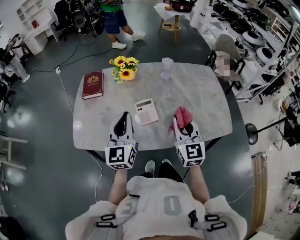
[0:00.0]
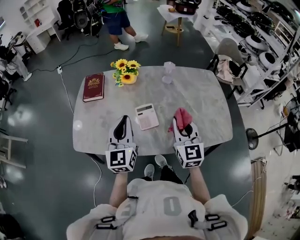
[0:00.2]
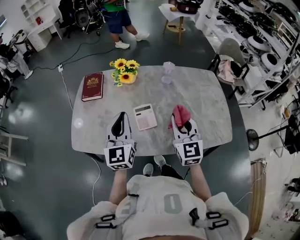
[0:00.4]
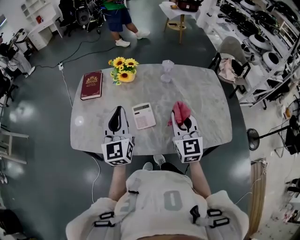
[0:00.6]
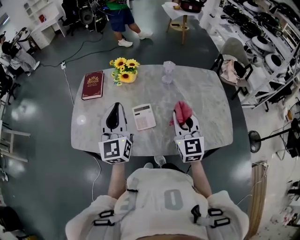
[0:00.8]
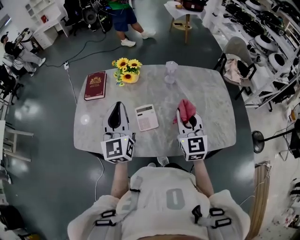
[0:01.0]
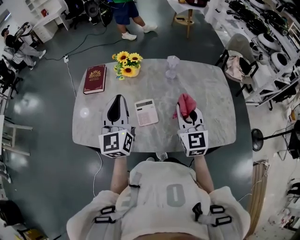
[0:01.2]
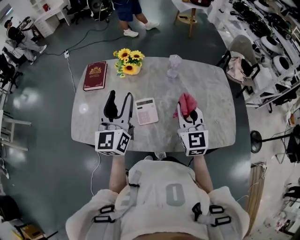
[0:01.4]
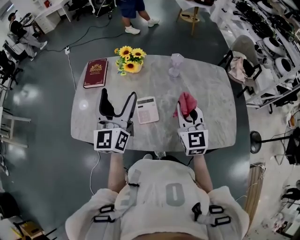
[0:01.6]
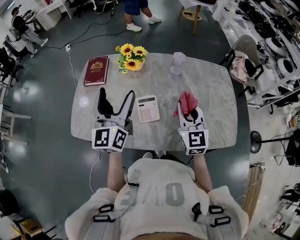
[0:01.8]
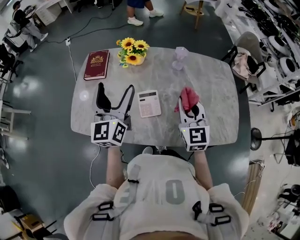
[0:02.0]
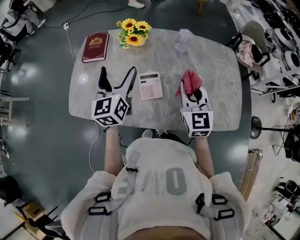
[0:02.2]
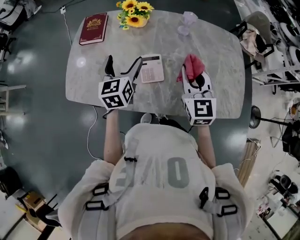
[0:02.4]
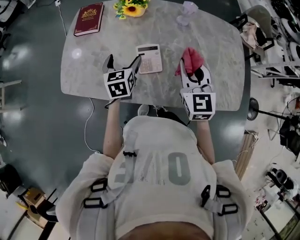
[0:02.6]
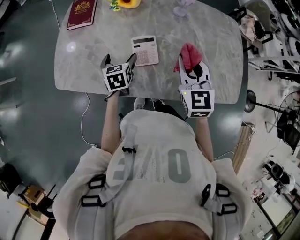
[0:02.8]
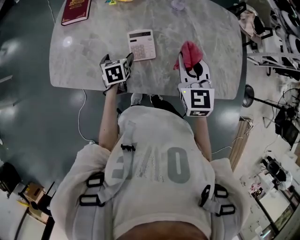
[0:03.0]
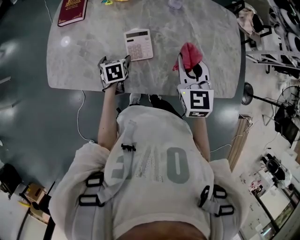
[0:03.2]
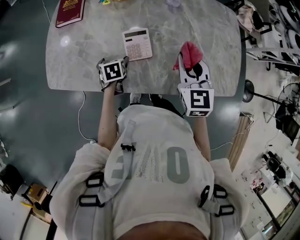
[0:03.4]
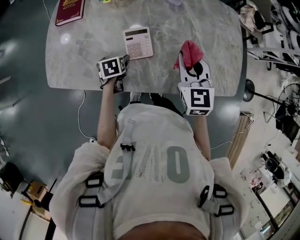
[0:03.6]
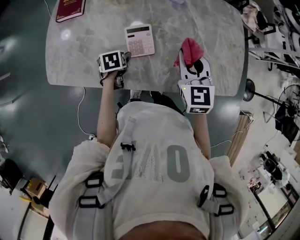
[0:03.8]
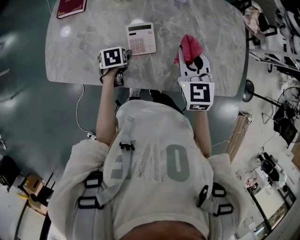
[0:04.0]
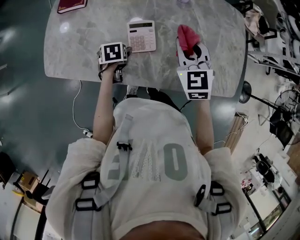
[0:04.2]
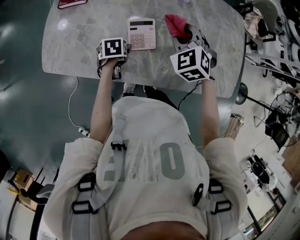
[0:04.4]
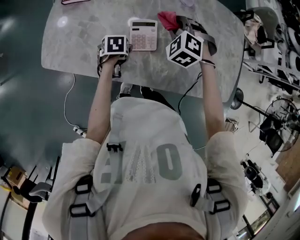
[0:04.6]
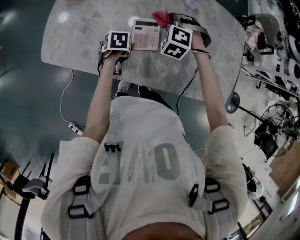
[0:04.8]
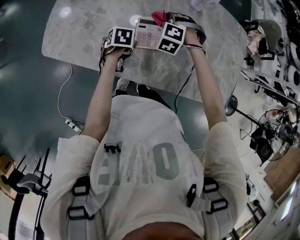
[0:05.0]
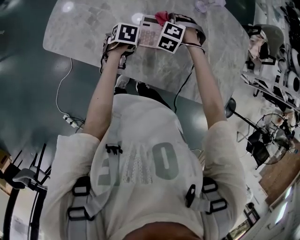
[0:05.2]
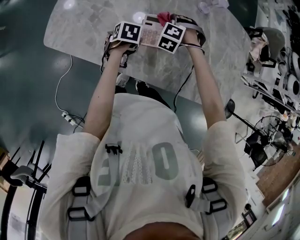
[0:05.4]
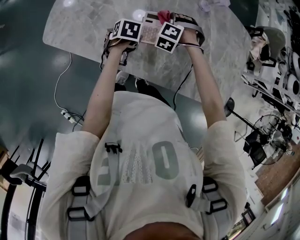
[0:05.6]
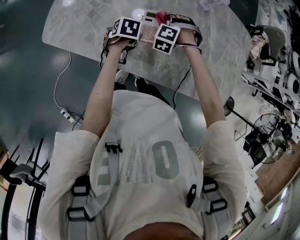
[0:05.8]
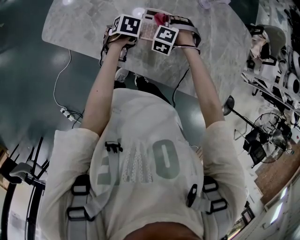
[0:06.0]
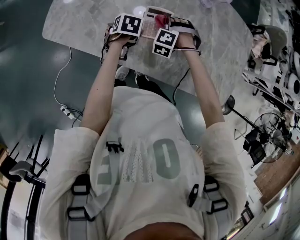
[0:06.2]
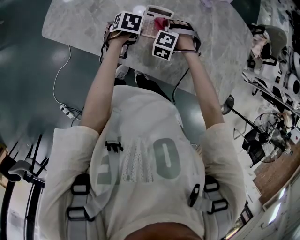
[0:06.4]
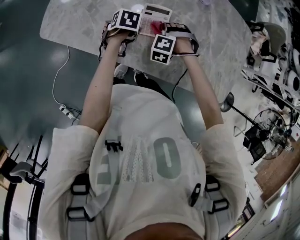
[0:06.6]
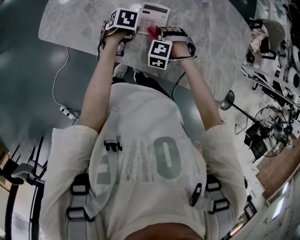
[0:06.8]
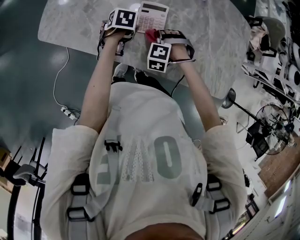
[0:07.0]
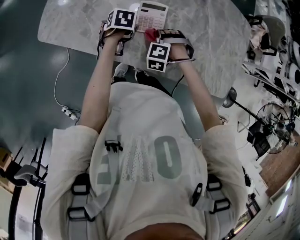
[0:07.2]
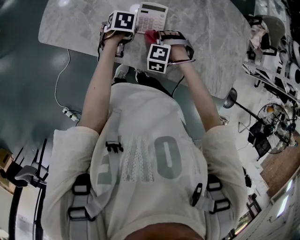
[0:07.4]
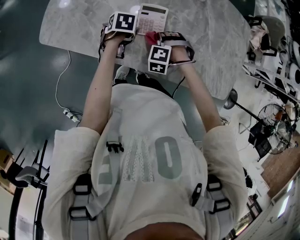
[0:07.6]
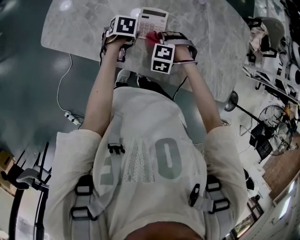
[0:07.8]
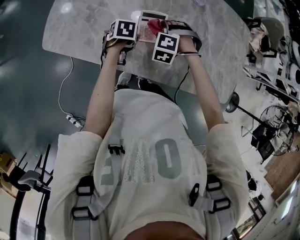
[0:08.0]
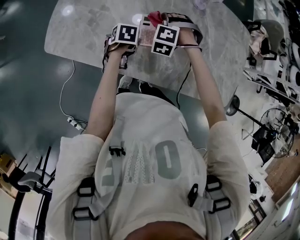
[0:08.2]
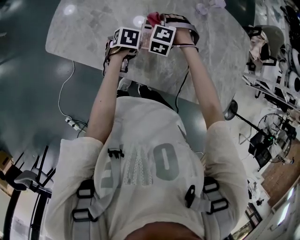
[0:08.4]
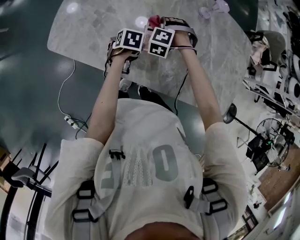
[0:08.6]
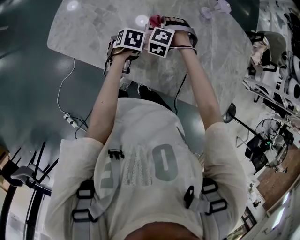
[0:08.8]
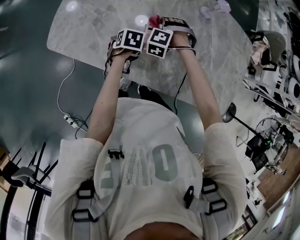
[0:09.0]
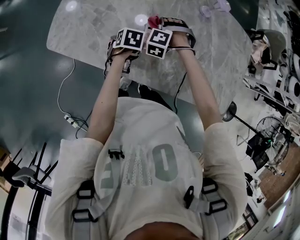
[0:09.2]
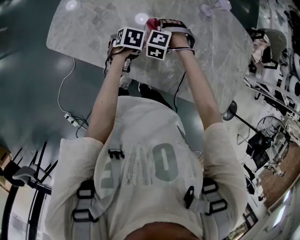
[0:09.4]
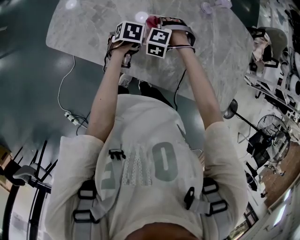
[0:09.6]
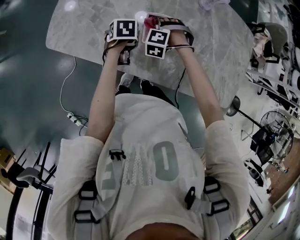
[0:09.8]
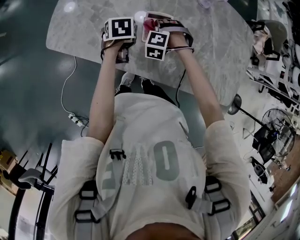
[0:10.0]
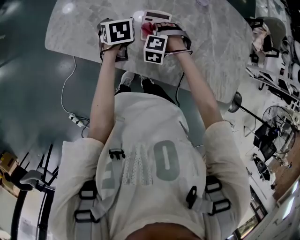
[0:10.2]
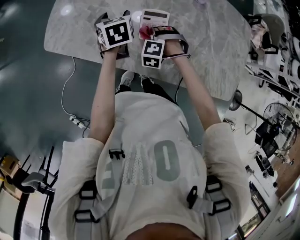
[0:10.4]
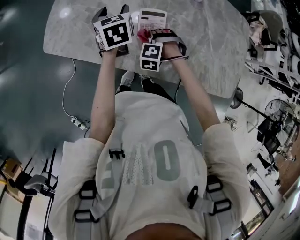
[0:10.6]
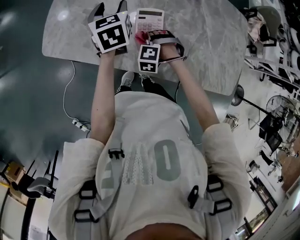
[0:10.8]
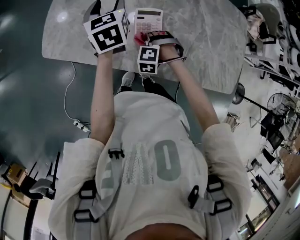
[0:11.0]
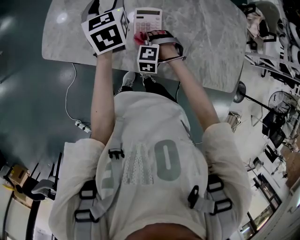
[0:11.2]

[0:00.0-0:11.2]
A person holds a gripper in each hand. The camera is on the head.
0:00.0 to 0:01.6: The left gripper is displaced forward and upward by approximately 10 cm, and opens its fingers. Meanwhile the right gripper travels forward by roughly 10 cm.
0:01.6 to 0:03.2: The right gripper travels downward by some 10 cm. Meanwhile the left gripper is displaced downward by some 40 cm, and angles its fingers downward, by approximately 70 degrees.
0:03.2 to 0:04.8: The right gripper travels downward, forward and to the left by some 20 cm, and rolls counterclockwise, seen from behind, by some 70 degrees.
0:04.8 to 0:06.4: The right gripper heads downward, covering about 10 cm.
0:08.0 to 0:09.6: The right gripper shifts by roughly 5 cm.
0:09.6 to 0:11.2: The left gripper heads upward, covering some 25 cm, angles its fingers upward, by approximately 50 degrees, and closes up; the right gripper heads backward, covering roughly 10 cm.

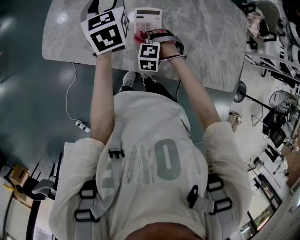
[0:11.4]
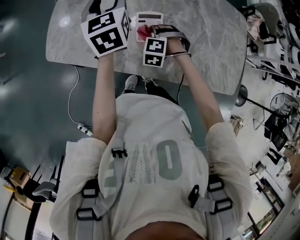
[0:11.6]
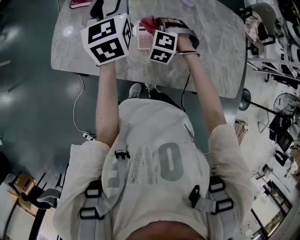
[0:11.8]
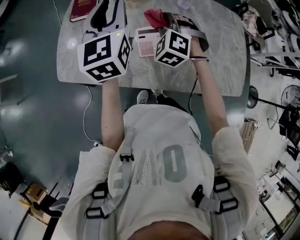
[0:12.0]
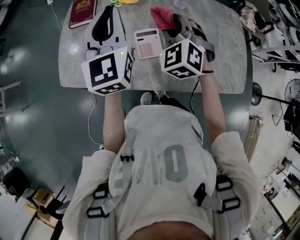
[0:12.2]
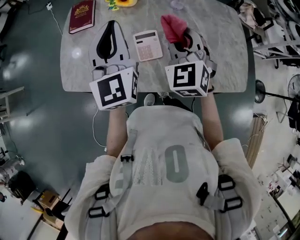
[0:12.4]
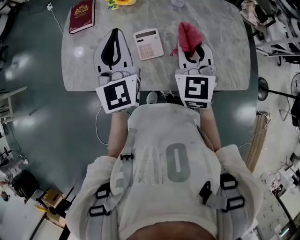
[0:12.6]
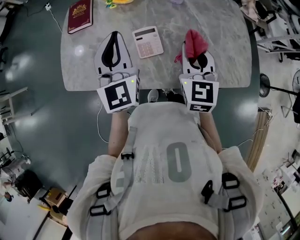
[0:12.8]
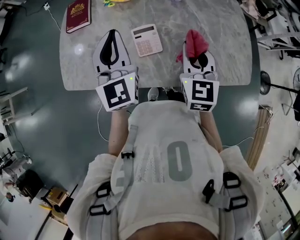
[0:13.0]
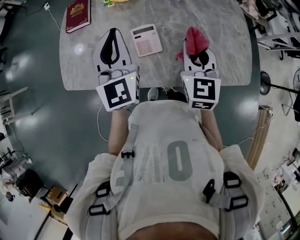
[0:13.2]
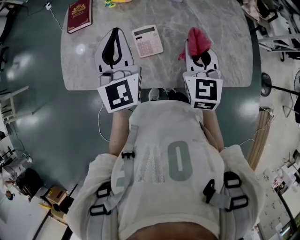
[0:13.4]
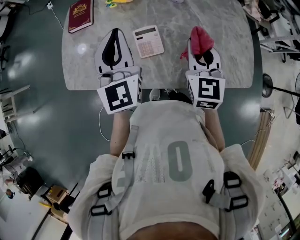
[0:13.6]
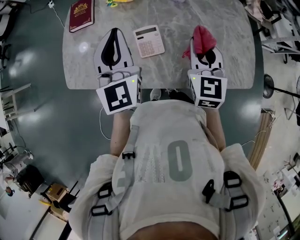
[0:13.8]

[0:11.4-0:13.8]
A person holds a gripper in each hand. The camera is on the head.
0:11.4 to 0:12.6: The left gripper heads upward, to the right and backward, covering about 20 cm, changes its angle by about 30 degrees, and closes; the right gripper moves upward and to the right, about 35 cm, and angles its fingers upward, by approximately 50 degrees.
0:12.6 to 0:13.8: The right gripper shifts approximately 5 cm to the right.

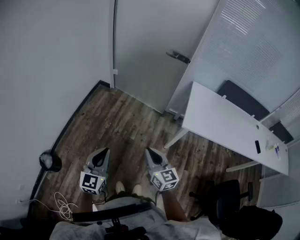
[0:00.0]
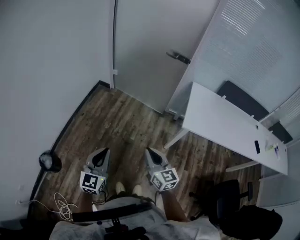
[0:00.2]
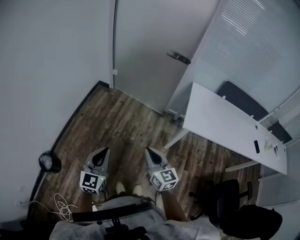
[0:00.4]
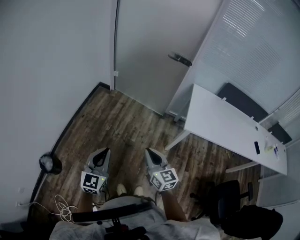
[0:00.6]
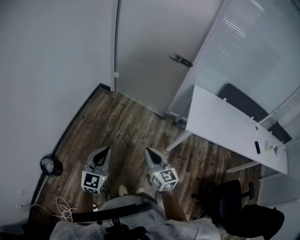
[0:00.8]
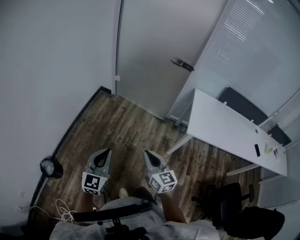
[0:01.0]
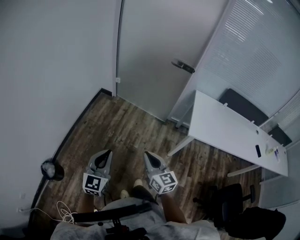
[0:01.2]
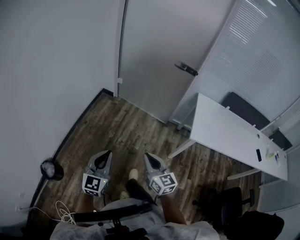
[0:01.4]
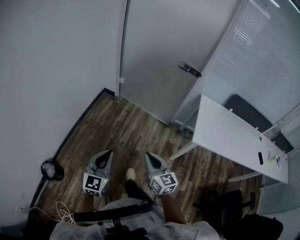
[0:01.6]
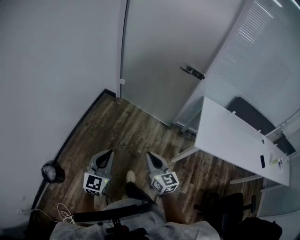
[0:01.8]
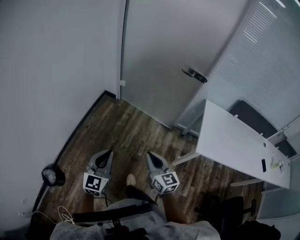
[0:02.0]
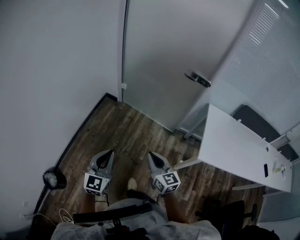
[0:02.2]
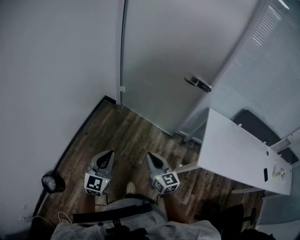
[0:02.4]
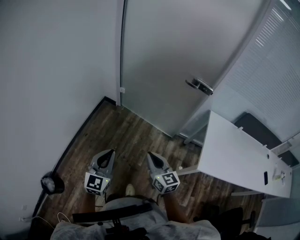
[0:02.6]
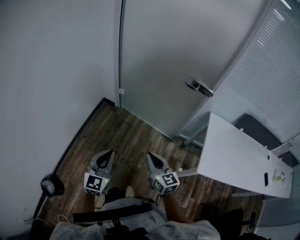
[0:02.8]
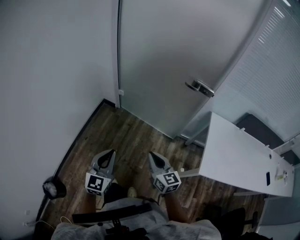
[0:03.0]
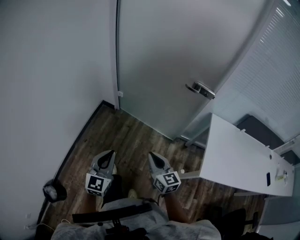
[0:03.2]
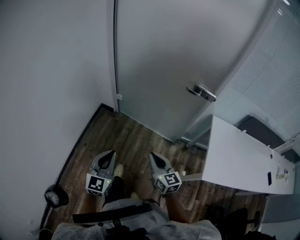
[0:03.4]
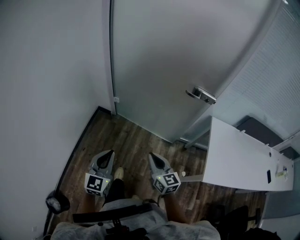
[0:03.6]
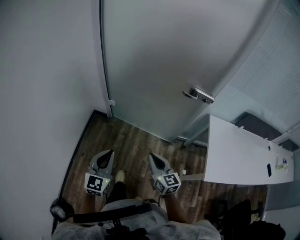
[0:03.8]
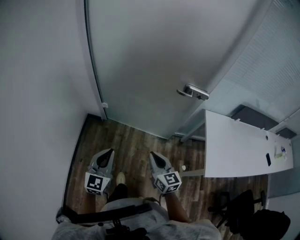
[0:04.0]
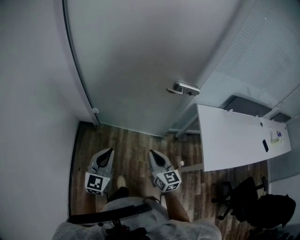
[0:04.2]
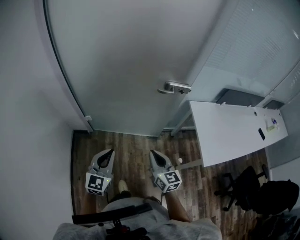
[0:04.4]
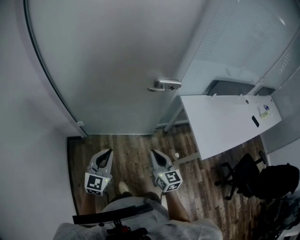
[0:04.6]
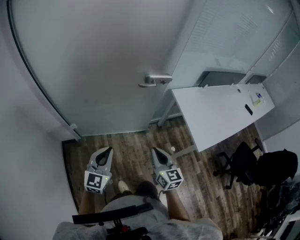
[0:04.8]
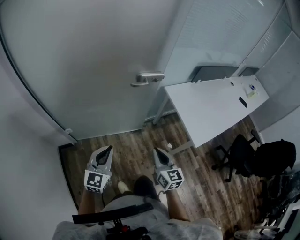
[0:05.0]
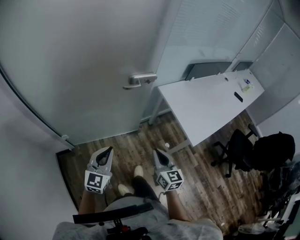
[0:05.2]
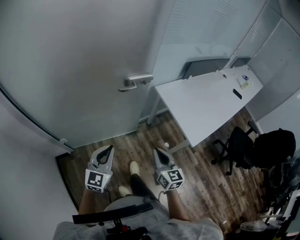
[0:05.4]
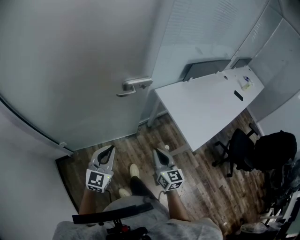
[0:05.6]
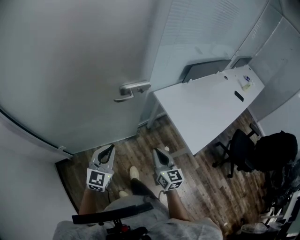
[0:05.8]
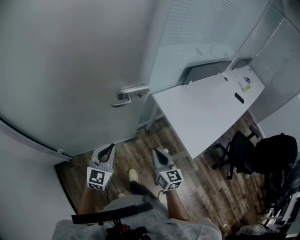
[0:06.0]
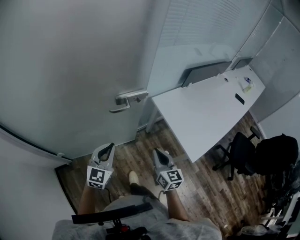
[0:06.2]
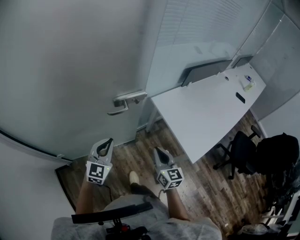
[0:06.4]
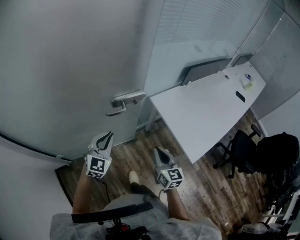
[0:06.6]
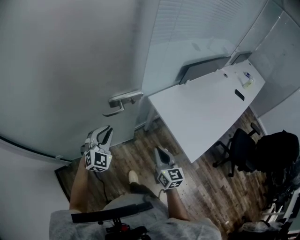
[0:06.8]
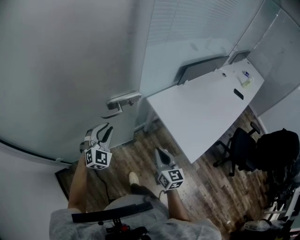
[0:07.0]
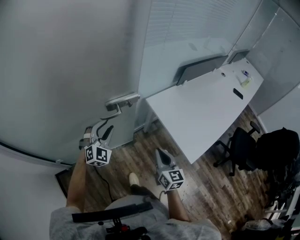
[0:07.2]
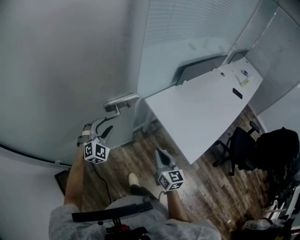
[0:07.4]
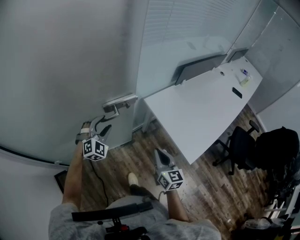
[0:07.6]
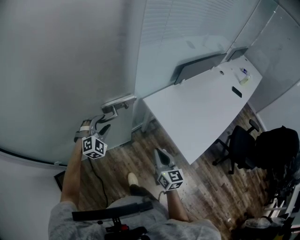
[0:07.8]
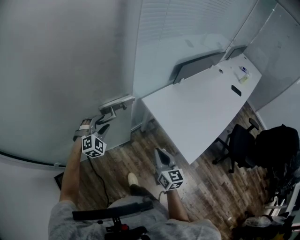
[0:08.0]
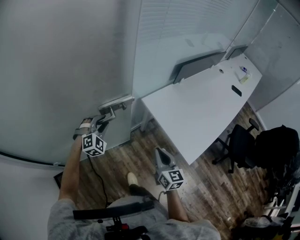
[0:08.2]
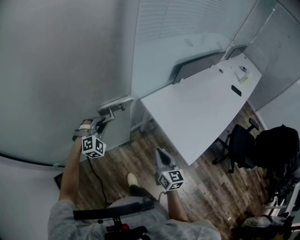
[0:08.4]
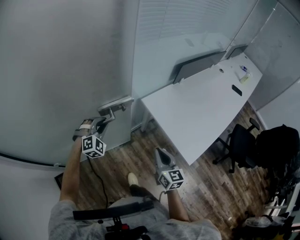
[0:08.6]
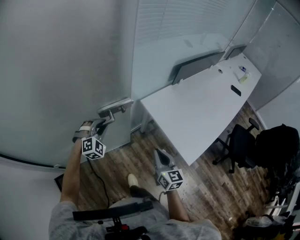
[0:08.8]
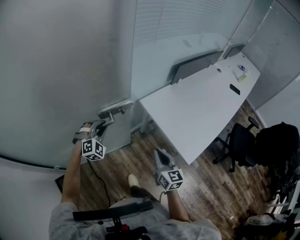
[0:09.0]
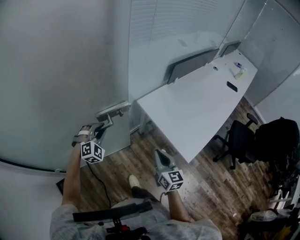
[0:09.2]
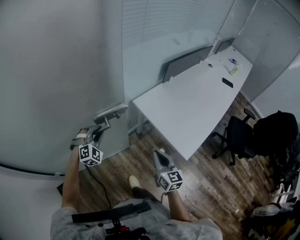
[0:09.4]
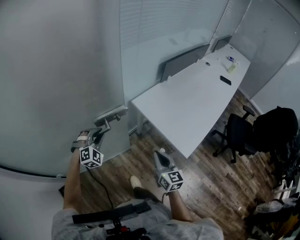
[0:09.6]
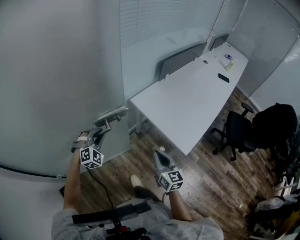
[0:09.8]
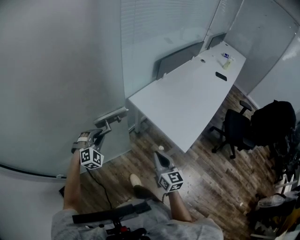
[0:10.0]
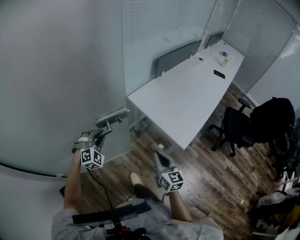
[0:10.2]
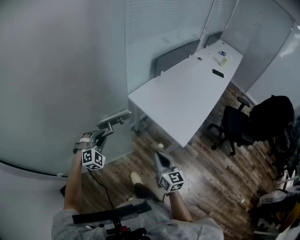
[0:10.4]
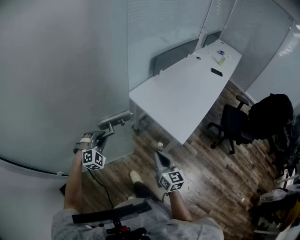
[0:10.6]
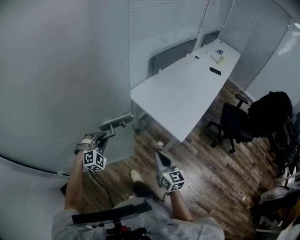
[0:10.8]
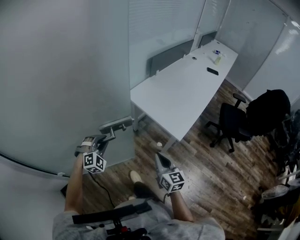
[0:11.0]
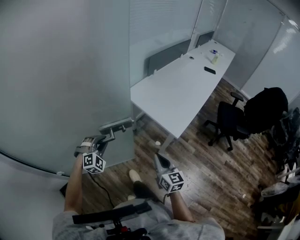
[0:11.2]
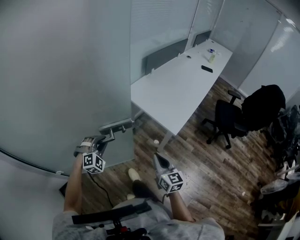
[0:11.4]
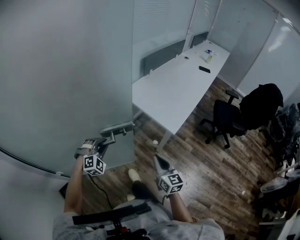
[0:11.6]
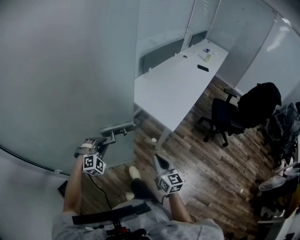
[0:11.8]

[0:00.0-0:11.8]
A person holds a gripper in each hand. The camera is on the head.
0:00.0 to 0:01.4: The two grippers go approximately 10 cm to the left.
0:01.4 to 0:03.0: The two grippers go about 30 cm forward.
0:03.0 to 0:04.4: The right gripper shifts by approximately 15 cm, and turns by some 30 degrees. The left gripper moves about 25 cm, and changes its angle by some 30 degrees.
0:04.4 to 0:06.0: The right gripper moves roughly 20 cm, and swivels about 30 degrees; the left gripper moves some 25 cm, and changes its angle by some 30 degrees.
0:06.0 to 0:07.4: The left gripper shifts approximately 20 cm forward, rotates around the line of its fingers by some 40 degrees, clockwise from behind, and opens up, while the right gripper goes about 5 cm forward.
0:07.4 to 0:08.8: The left gripper moves approximately 5 cm, and closes its fingers.
0:08.8 to 0:10.4: The grippers both shift backward by approximately 10 cm.
0:10.4 to 0:11.8: The grippers both shift backward by about 15 cm.
